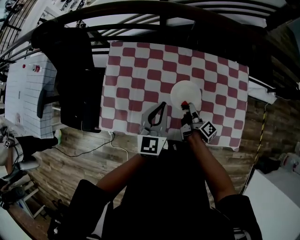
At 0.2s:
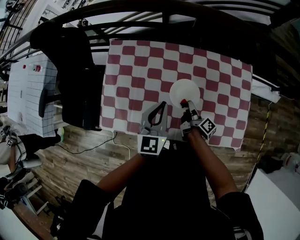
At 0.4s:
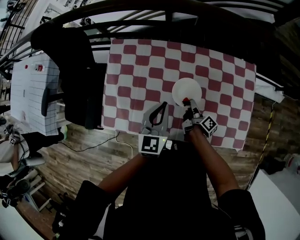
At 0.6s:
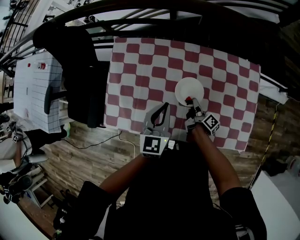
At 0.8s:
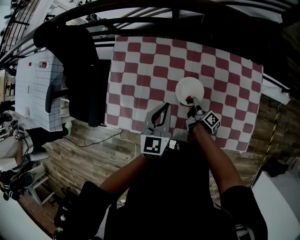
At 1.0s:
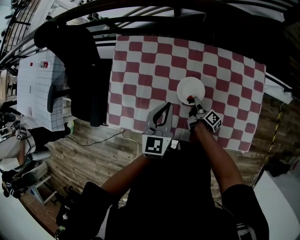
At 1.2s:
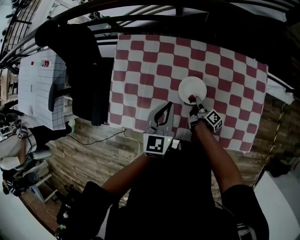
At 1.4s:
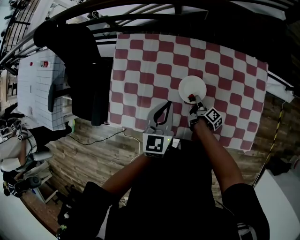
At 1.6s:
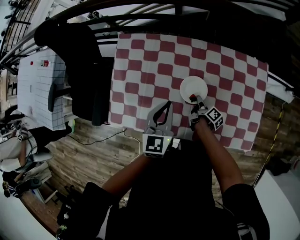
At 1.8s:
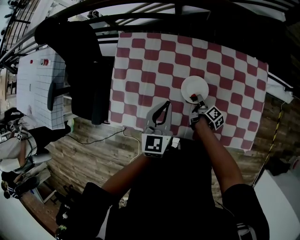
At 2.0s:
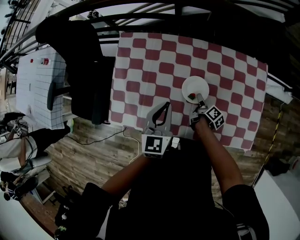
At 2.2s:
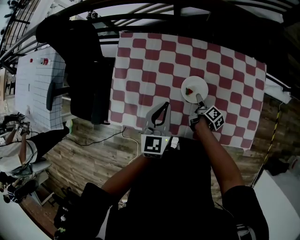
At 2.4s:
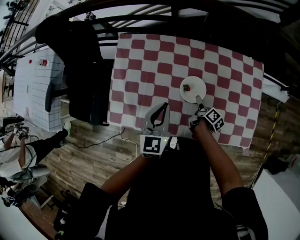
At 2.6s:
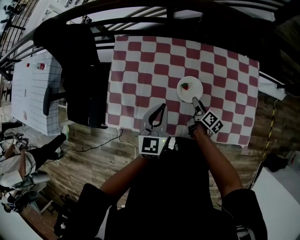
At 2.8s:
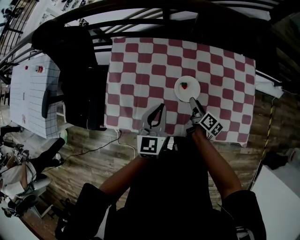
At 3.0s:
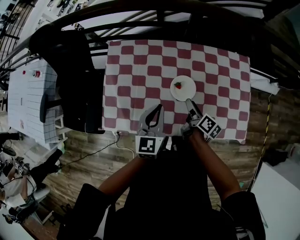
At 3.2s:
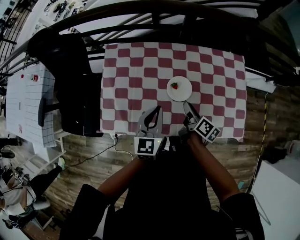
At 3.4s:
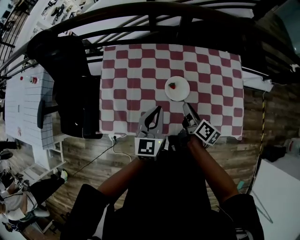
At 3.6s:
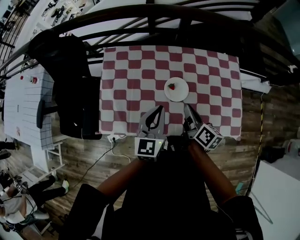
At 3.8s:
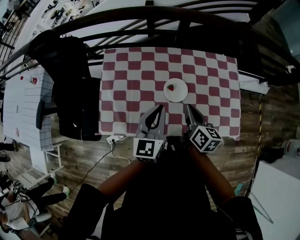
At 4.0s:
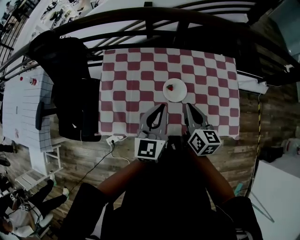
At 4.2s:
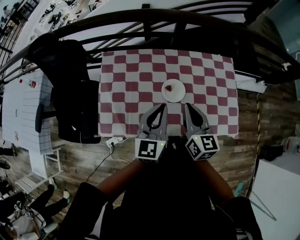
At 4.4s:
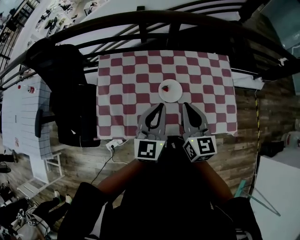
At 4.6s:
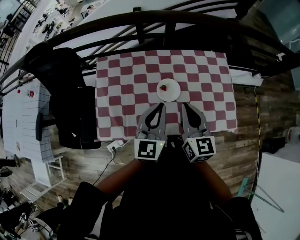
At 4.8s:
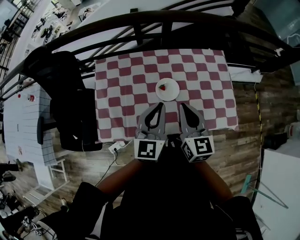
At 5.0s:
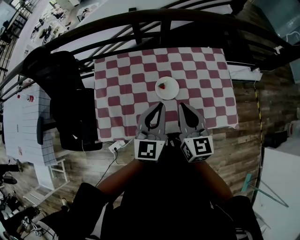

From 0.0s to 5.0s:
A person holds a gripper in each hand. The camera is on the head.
From 0.0s to 1.6s: The left gripper changes place by some 5 cm.
From 1.6s to 3.4s: The left gripper changes place by about 5 cm.
From 3.4s to 5.0s: The left gripper heads upward, covering some 10 cm.

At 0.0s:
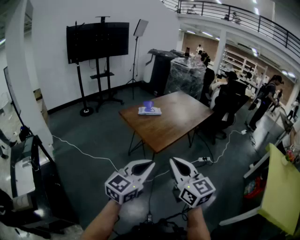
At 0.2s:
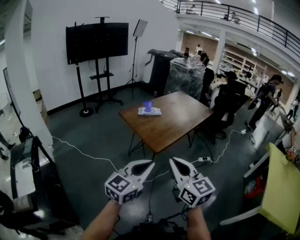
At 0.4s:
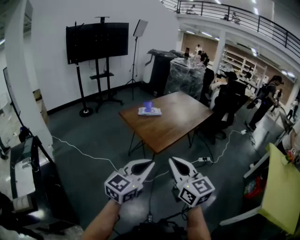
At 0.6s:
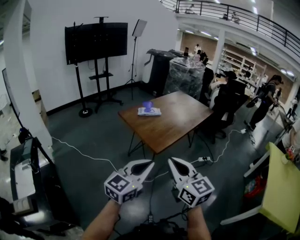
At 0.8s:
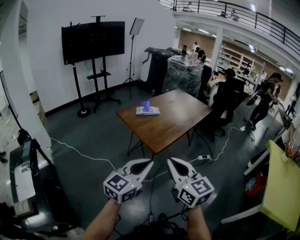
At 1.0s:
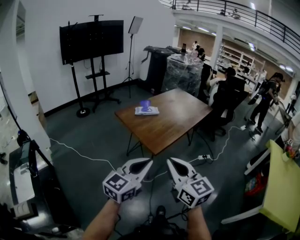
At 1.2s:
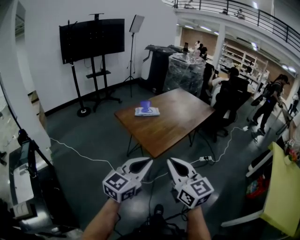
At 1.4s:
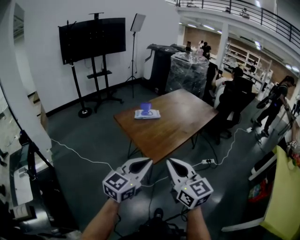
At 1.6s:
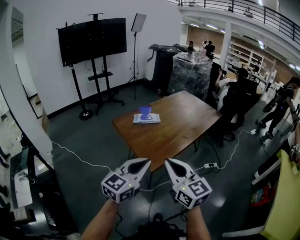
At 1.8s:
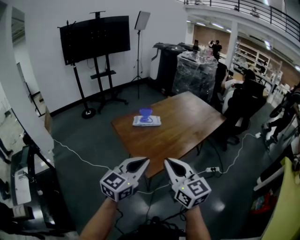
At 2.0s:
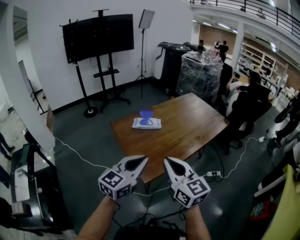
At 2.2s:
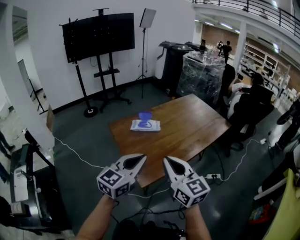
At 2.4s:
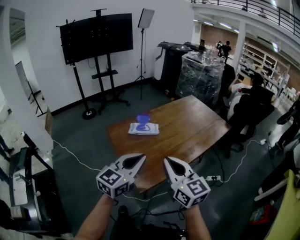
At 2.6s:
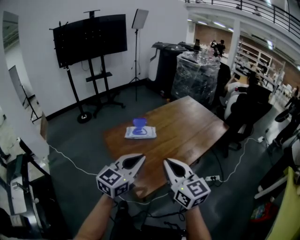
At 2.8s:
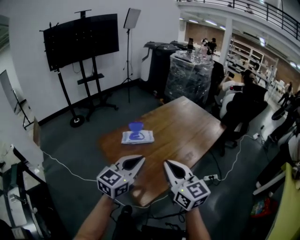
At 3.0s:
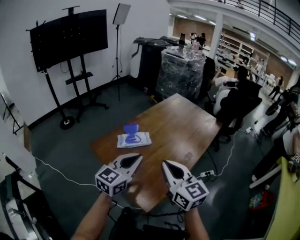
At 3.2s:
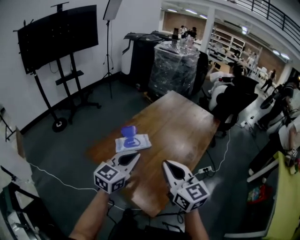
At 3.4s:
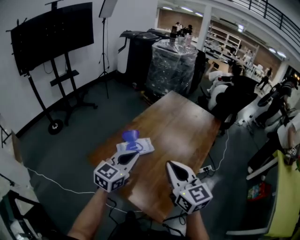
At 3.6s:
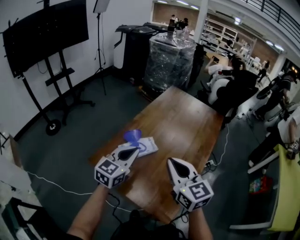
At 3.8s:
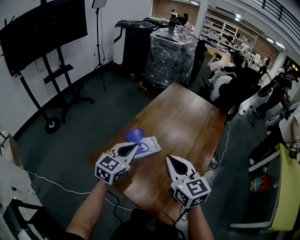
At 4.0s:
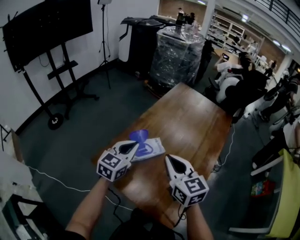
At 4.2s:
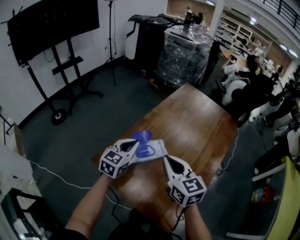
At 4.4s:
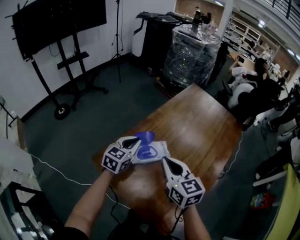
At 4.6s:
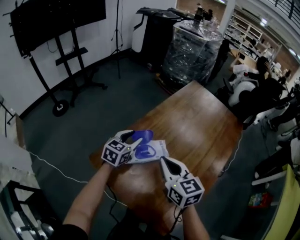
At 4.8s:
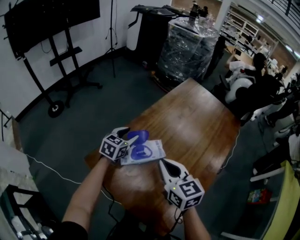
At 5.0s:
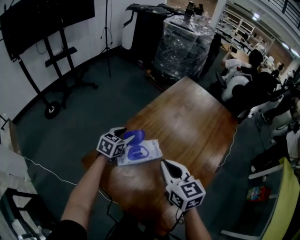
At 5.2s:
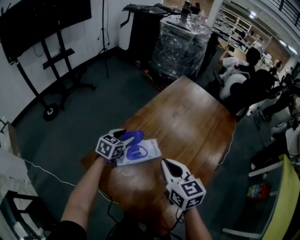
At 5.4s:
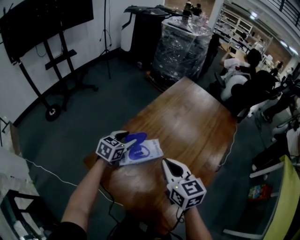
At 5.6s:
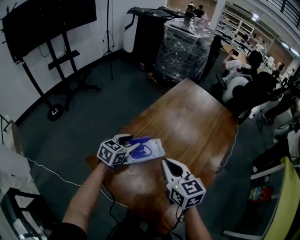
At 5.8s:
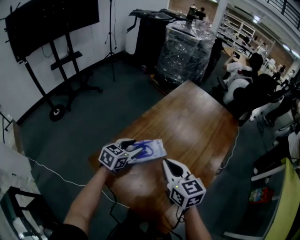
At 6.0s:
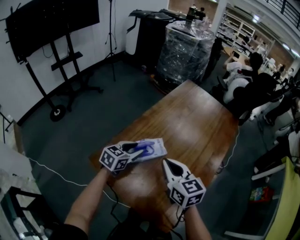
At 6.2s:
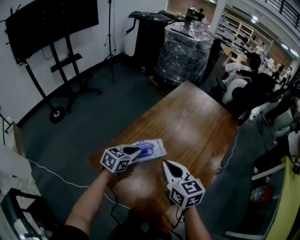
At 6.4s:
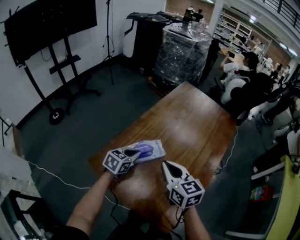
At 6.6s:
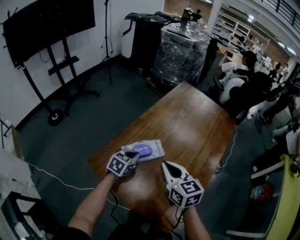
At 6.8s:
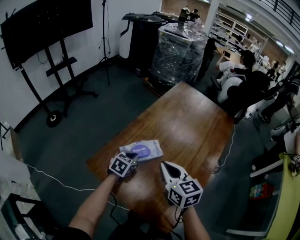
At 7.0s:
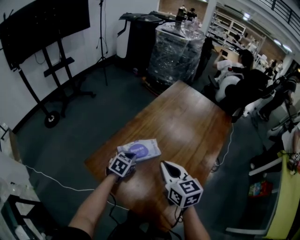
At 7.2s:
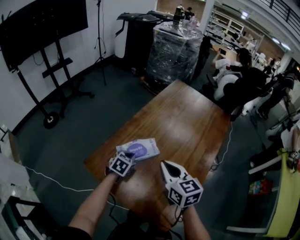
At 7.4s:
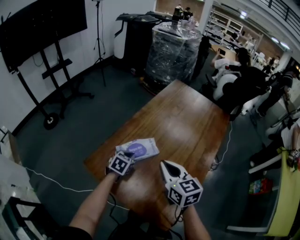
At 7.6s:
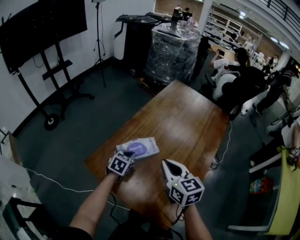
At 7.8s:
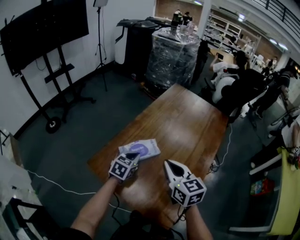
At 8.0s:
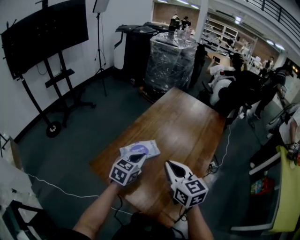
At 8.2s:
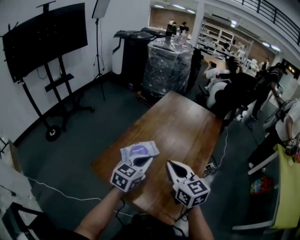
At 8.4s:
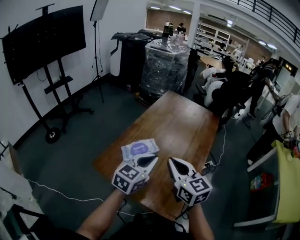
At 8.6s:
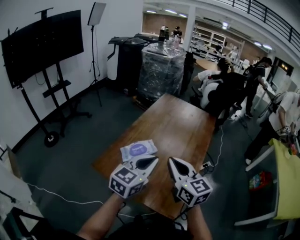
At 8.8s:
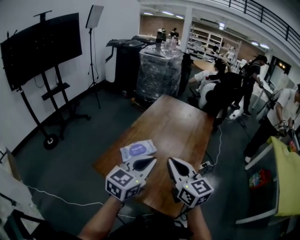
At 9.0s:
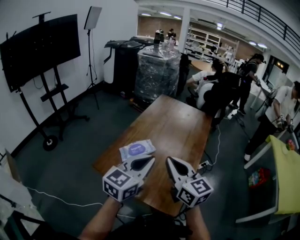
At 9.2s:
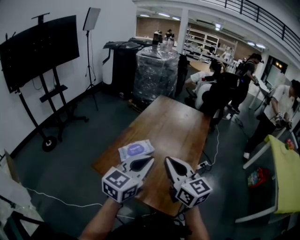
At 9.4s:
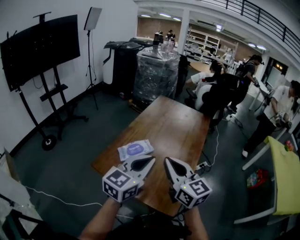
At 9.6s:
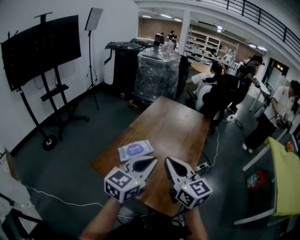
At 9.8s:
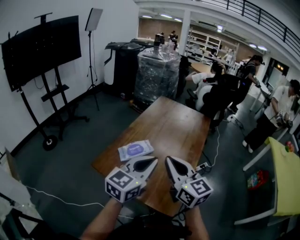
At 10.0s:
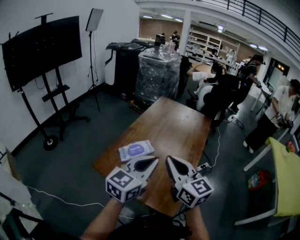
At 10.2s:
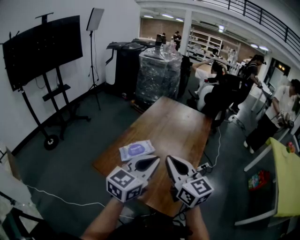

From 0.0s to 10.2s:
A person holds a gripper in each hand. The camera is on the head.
From 0.0s to 1.4s: The grippers both shift forward by about 15 cm.
From 1.4s to 3.0s: Both grippers move forward, some 35 cm.
From 3.0s to 4.4s: The grippers both shift forward, to the left and downward by some 30 cm.
From 4.4s to 5.8s: The left gripper opens its fingers.
From 5.8s to 7.2s: The left gripper is displaced downward by about 10 cm, turns by roughly 20 degrees, and closes.
From 7.2s to 8.8s: The right gripper moves backward and upward, approximately 15 cm; the left gripper heads upward and backward, covering about 35 cm, and tilts its fingers about 40 degrees upward.
From 8.8s to 10.2s: The grippers make only small movements.

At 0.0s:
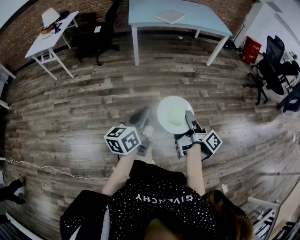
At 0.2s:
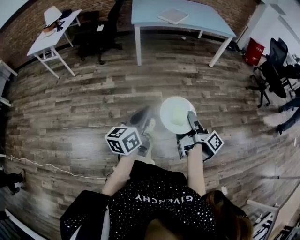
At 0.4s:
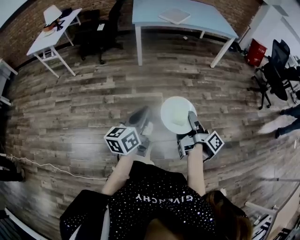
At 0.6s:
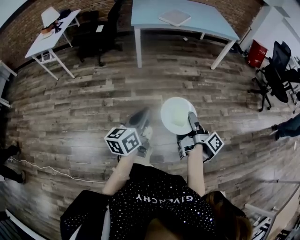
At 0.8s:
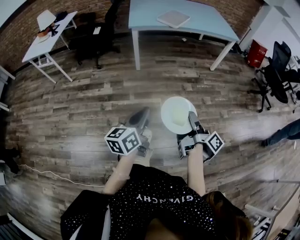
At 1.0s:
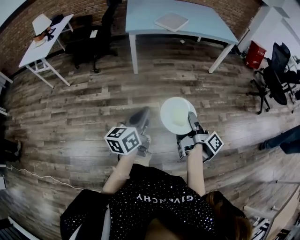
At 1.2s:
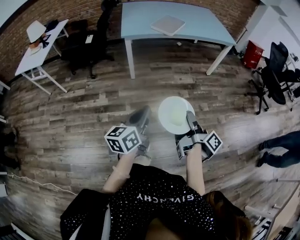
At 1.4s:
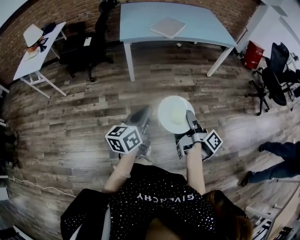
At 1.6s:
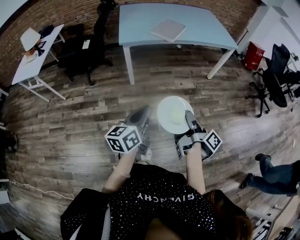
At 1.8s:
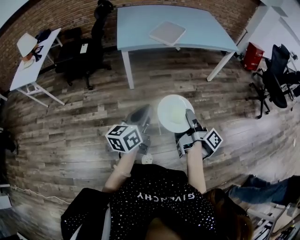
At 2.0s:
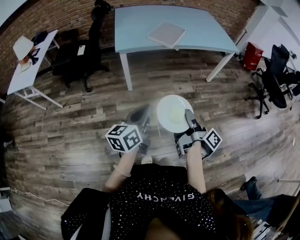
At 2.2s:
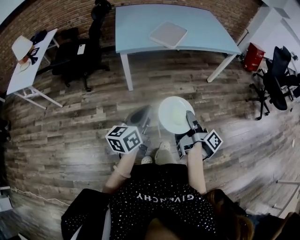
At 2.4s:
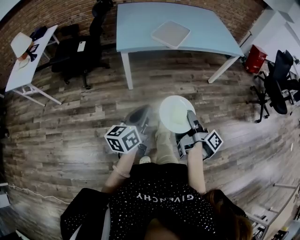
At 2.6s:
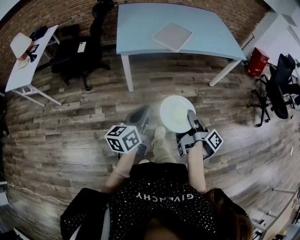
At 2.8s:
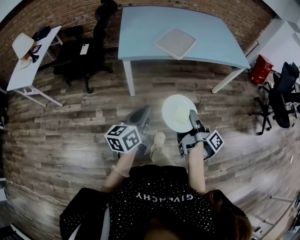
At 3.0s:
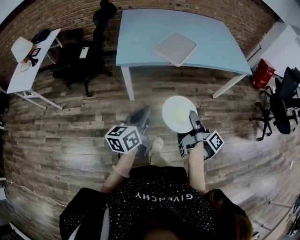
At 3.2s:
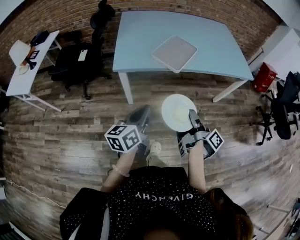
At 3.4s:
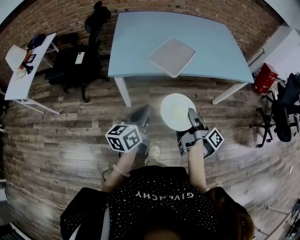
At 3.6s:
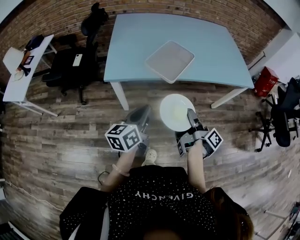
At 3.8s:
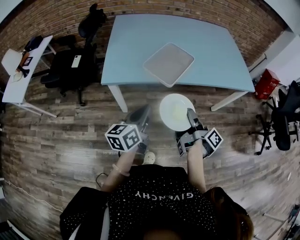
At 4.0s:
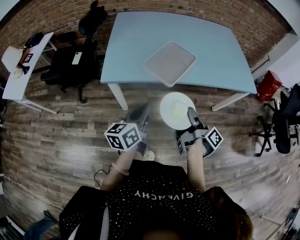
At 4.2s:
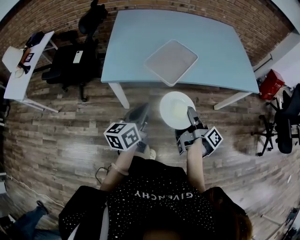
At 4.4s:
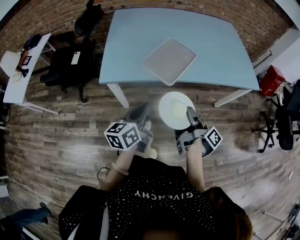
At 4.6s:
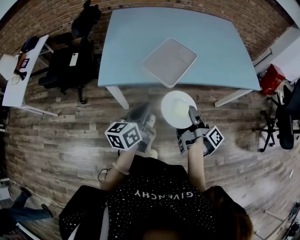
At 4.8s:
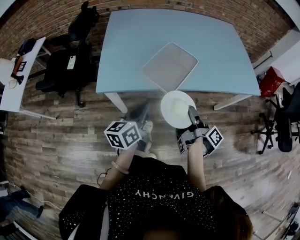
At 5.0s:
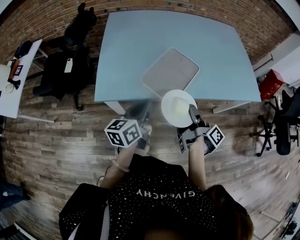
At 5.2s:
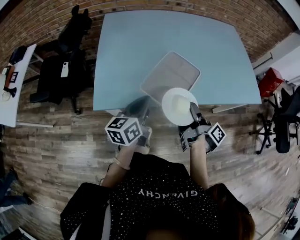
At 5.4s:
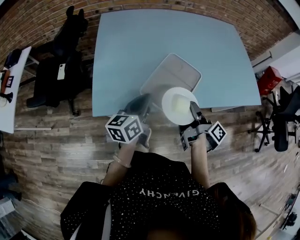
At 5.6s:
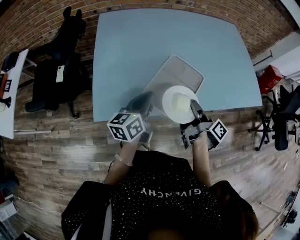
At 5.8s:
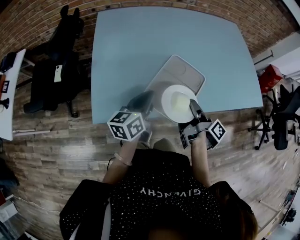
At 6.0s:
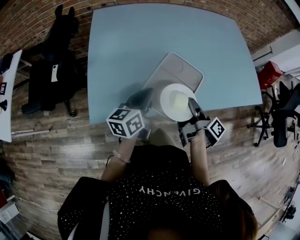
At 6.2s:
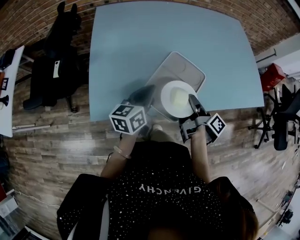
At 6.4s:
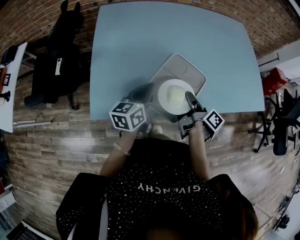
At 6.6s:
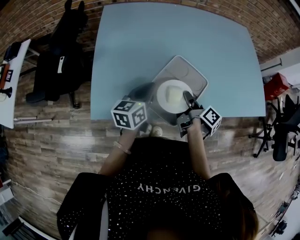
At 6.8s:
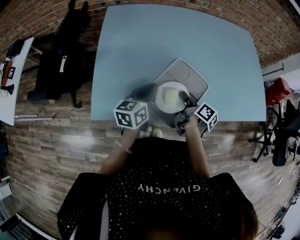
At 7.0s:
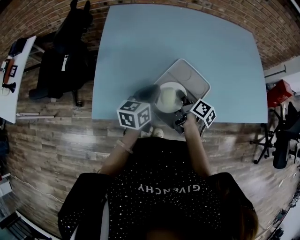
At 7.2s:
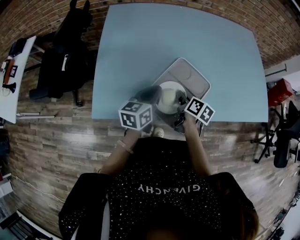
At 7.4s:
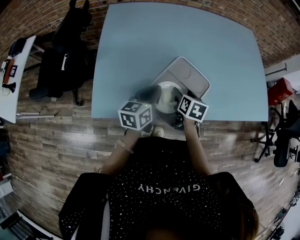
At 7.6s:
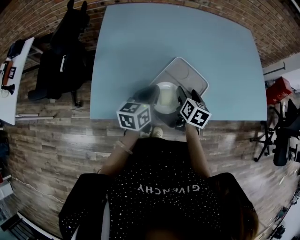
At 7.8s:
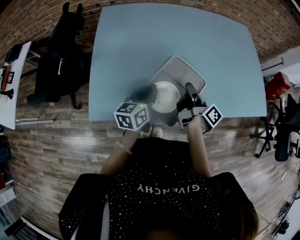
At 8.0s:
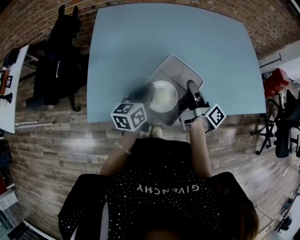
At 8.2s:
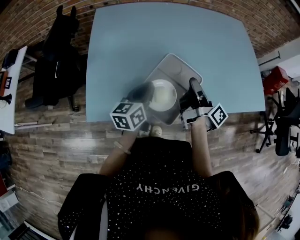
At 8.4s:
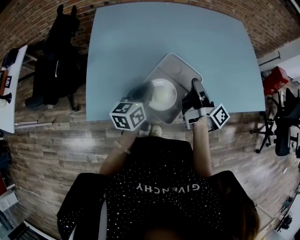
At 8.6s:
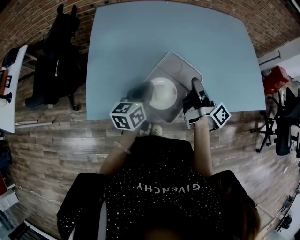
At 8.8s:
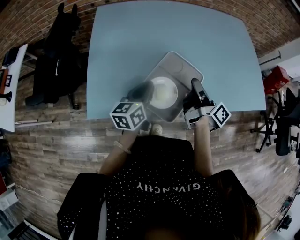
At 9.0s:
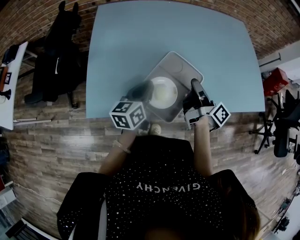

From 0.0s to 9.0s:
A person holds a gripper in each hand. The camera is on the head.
From 0.0s to 1.6s: The left gripper changes place by some 35 cm.
From 1.6s to 3.0s: The left gripper ends up roughly 25 cm from where it was.
From 3.0s to 4.4s: The left gripper shifts by roughly 25 cm.
From 4.4s to 6.0s: The left gripper shifts by some 30 cm.
From 6.0s to 7.6s: The left gripper shifts by about 5 cm.
